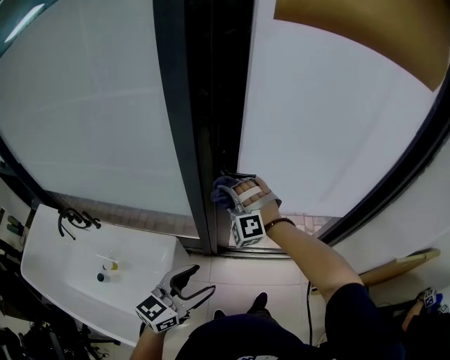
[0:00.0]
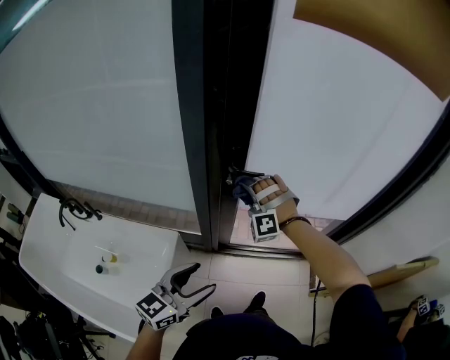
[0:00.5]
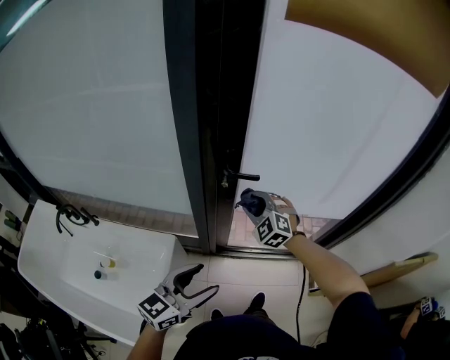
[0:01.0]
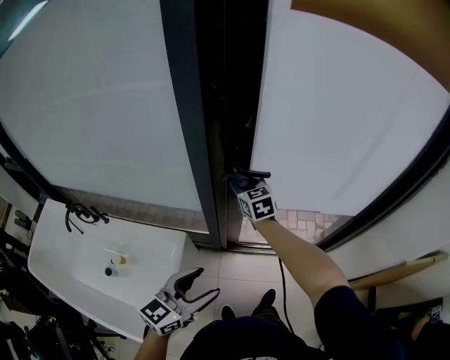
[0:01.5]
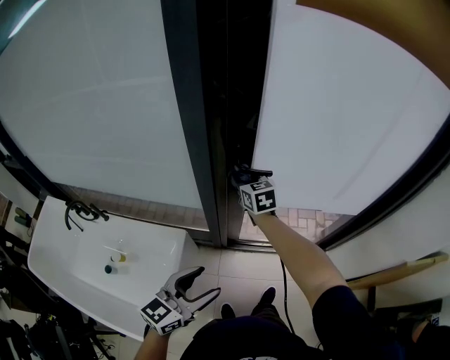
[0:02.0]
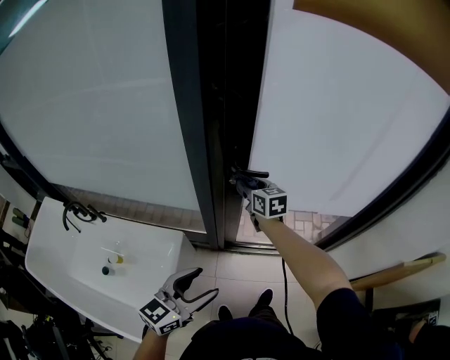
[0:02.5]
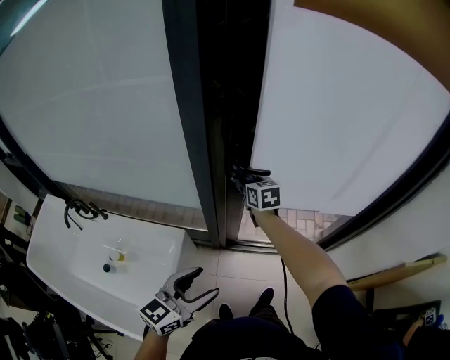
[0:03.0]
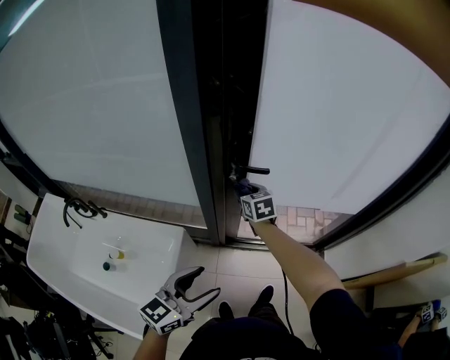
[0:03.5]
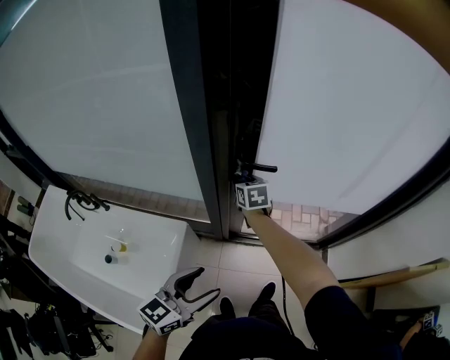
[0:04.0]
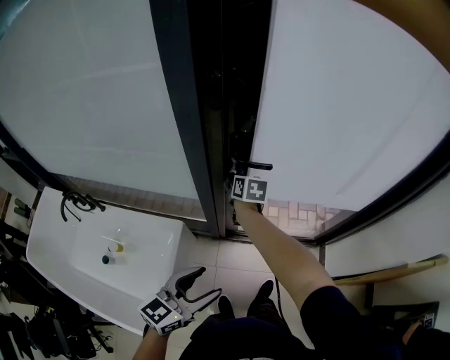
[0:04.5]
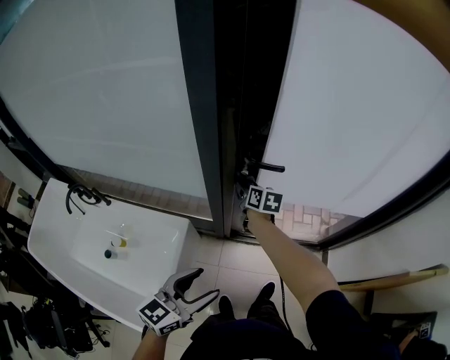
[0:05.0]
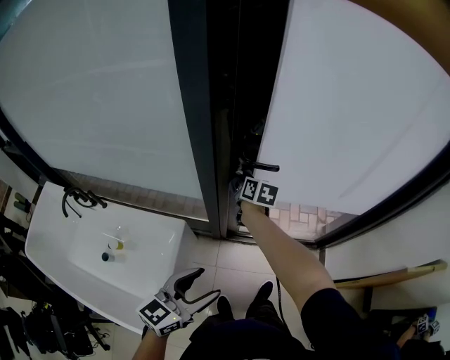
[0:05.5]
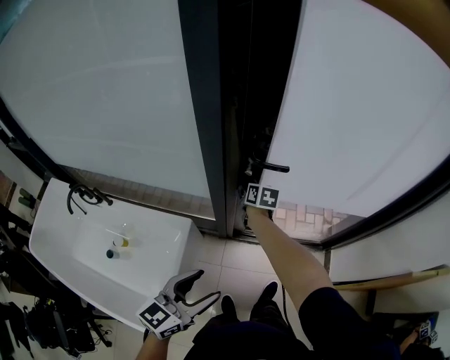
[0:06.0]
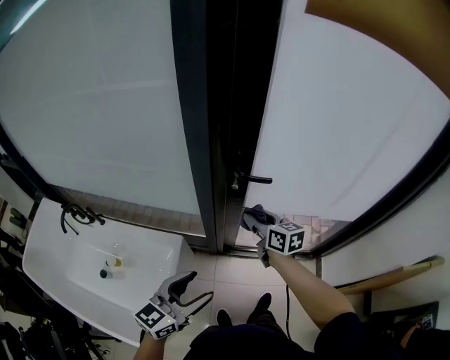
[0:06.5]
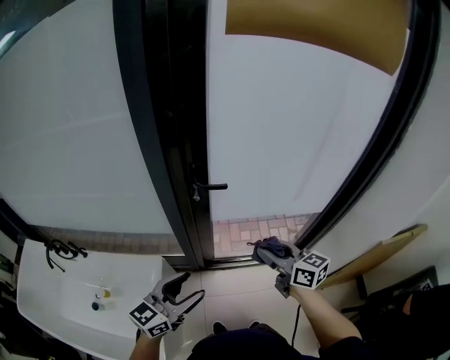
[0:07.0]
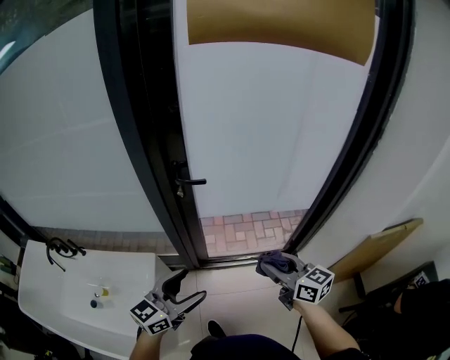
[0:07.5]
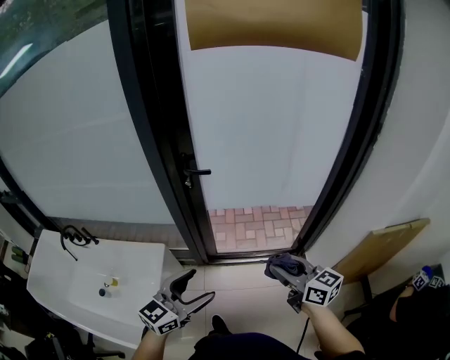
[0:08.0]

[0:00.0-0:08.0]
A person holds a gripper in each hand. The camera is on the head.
0:00.0 to 0:02.0: The right gripper goes some 10 cm forward, and rolls clockwise, seen from behind, by about 90 degrees.
0:02.0 to 0:04.0: The right gripper travels downward by some 5 cm.
0:04.0 to 0:06.0: The right gripper goes approximately 5 cm downward, and changes its angle by some 20 degrees.
0:06.0 to 0:08.0: The right gripper goes about 60 cm backward, to the right and upward, and swivels roughly 30 degrees. Meanwhile the left gripper shifts some 20 cm to the right, backward and upward.

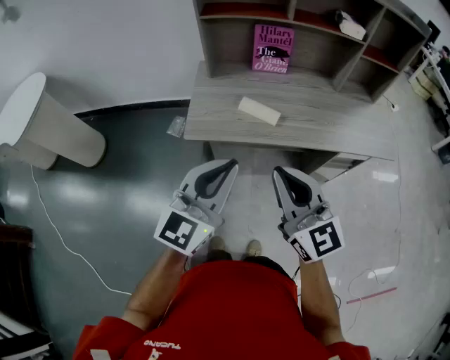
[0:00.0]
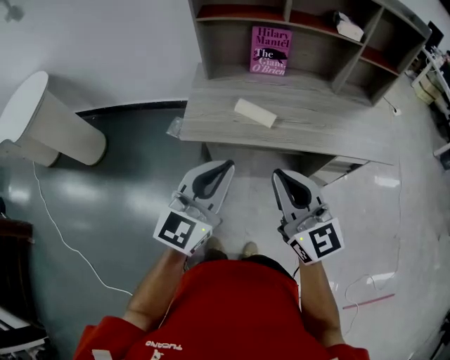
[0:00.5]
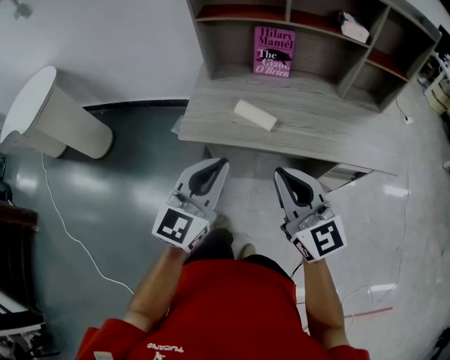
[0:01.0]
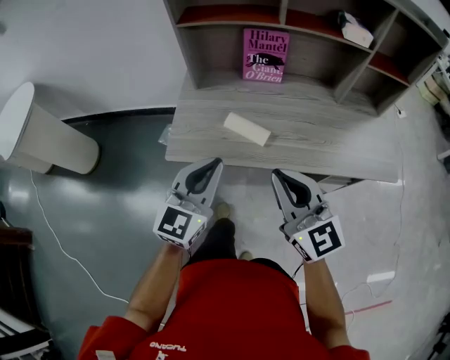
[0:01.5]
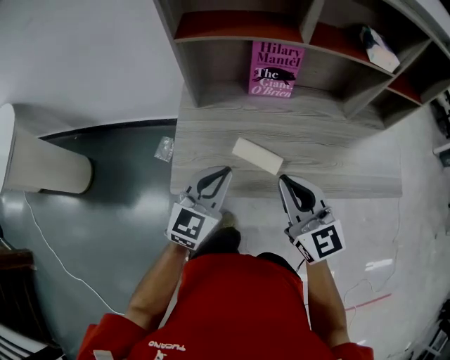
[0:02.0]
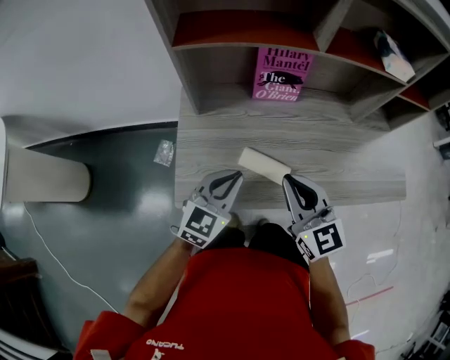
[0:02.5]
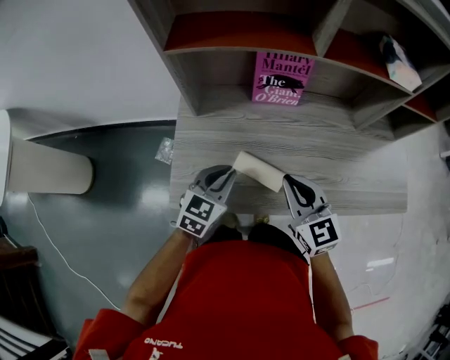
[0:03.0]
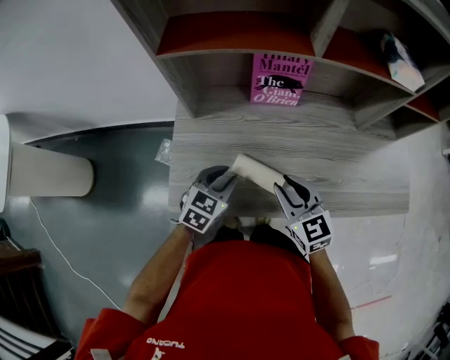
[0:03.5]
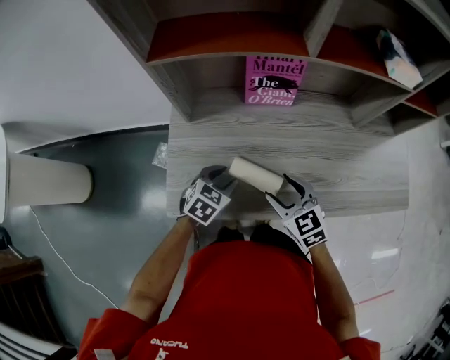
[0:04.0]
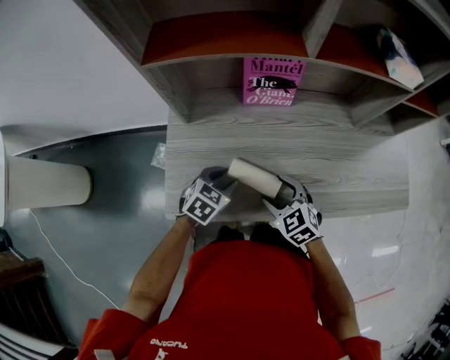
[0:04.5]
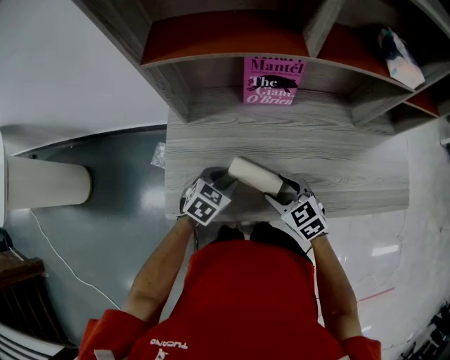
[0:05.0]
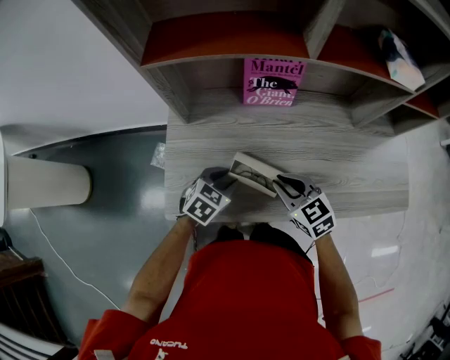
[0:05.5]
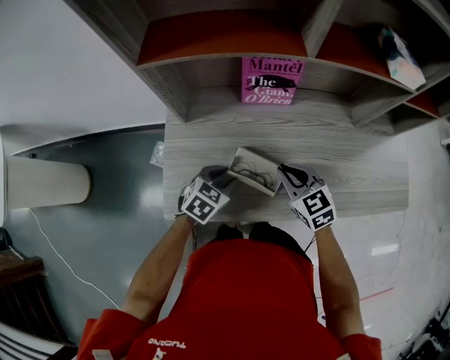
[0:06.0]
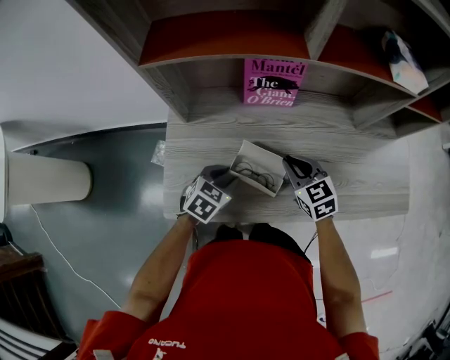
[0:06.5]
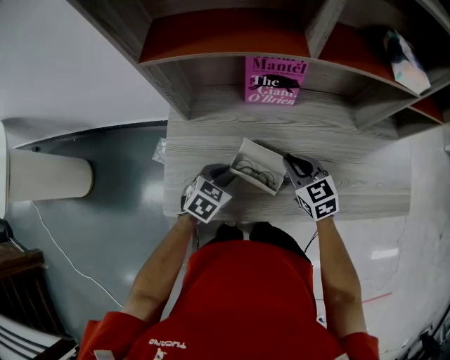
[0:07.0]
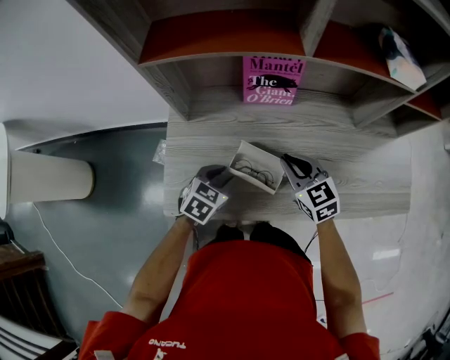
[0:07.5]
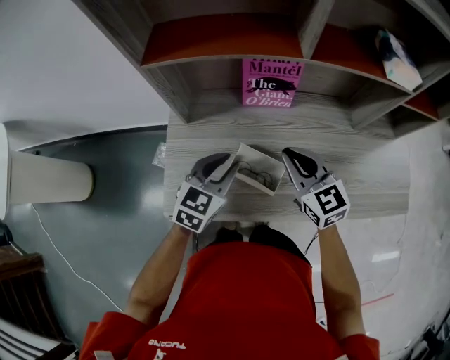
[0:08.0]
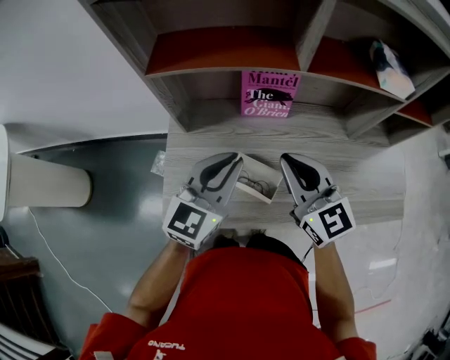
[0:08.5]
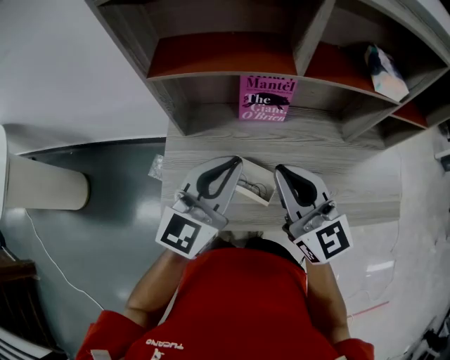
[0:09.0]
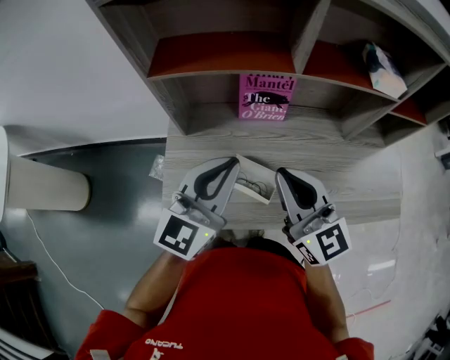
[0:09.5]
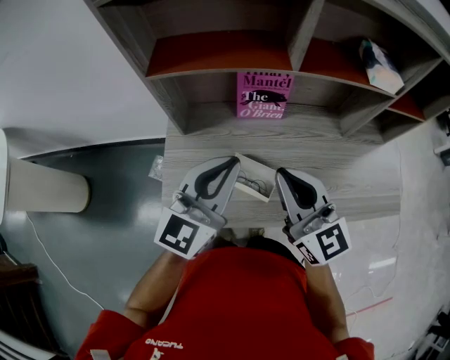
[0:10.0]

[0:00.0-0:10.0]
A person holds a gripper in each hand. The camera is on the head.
0:00.0 to 0:02.0: The right gripper is displaced forward by some 20 cm. The left gripper goes roughly 30 cm forward and downward.
0:02.0 to 0:04.0: The grippers both shift downward and forward by about 20 cm. The left gripper angles its fingers downward, by roughly 40 degrees, and opens up. The right gripper rotates approximately 30 degrees, and opens its fingers.
0:04.0 to 0:06.0: The right gripper travels forward by approximately 5 cm, and closes its fingers.
0:06.0 to 0:08.0: The two grippers go roughly 10 cm upward. The left gripper turns by roughly 20 degrees.
0:08.0 to 0:10.0: The right gripper is displaced upward and backward by some 15 cm, while the left gripper travels upward by about 15 cm, and rotates about 30 degrees.

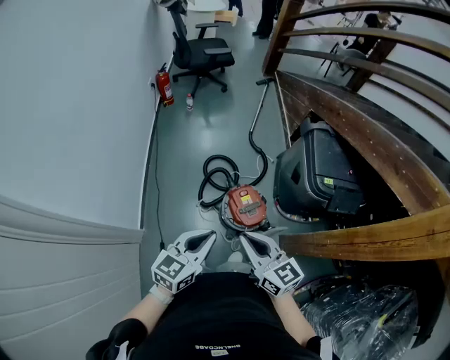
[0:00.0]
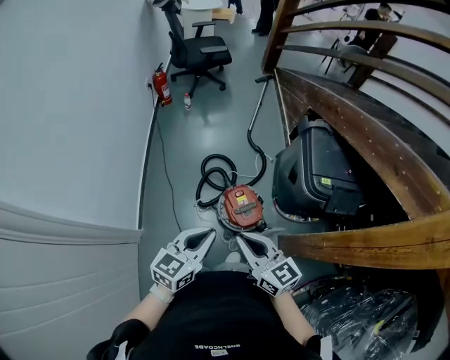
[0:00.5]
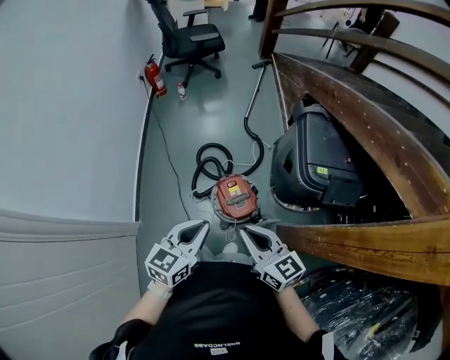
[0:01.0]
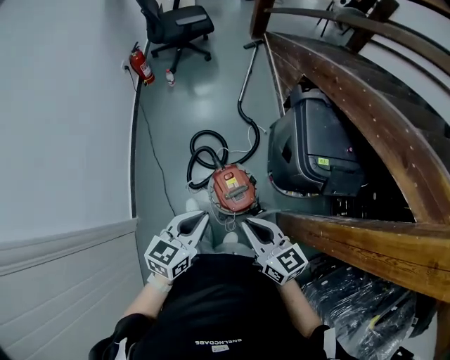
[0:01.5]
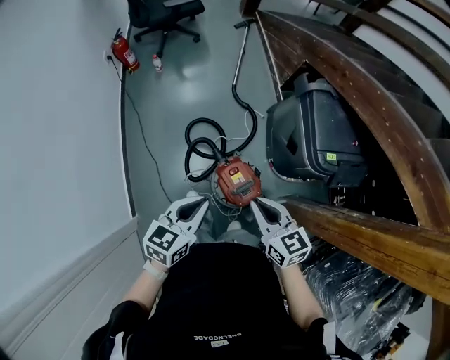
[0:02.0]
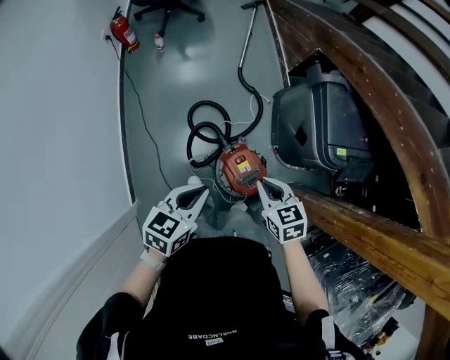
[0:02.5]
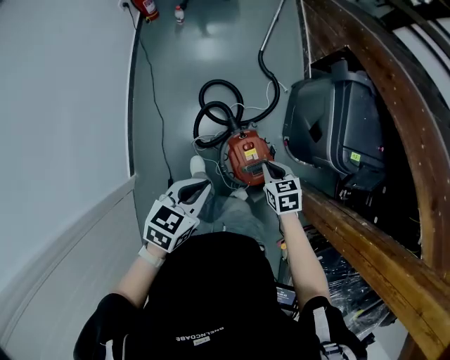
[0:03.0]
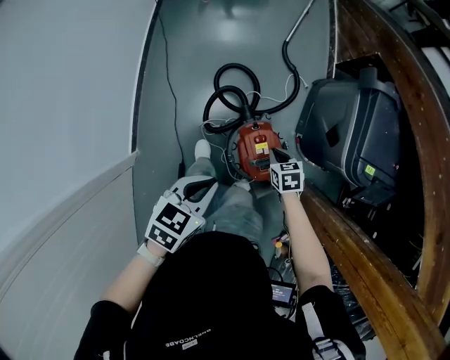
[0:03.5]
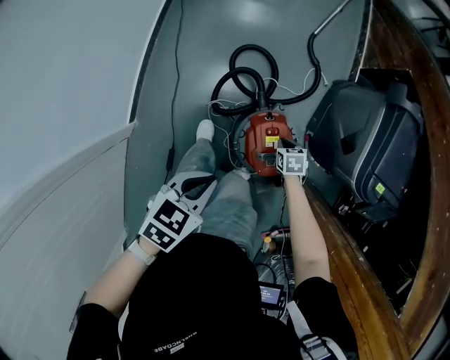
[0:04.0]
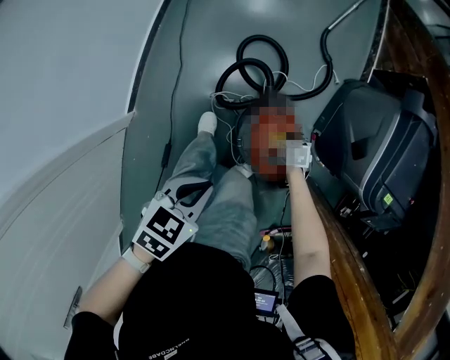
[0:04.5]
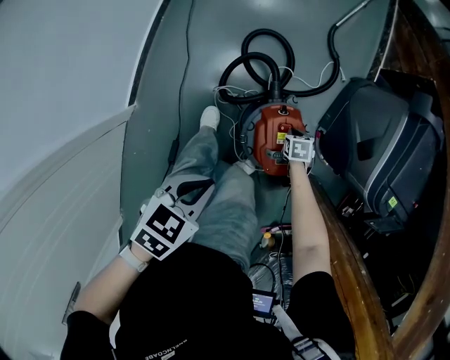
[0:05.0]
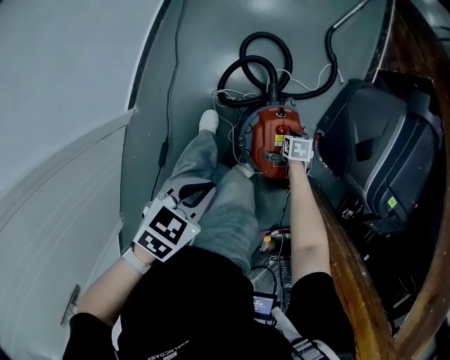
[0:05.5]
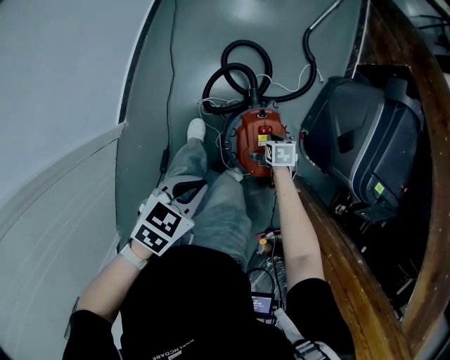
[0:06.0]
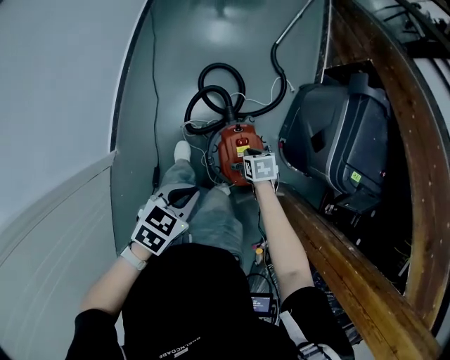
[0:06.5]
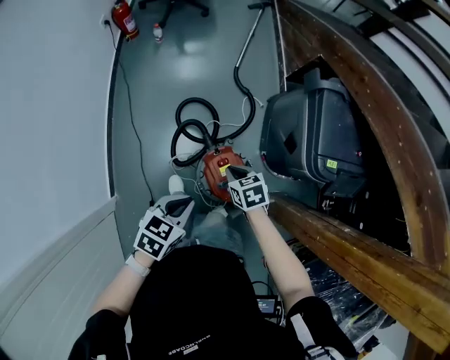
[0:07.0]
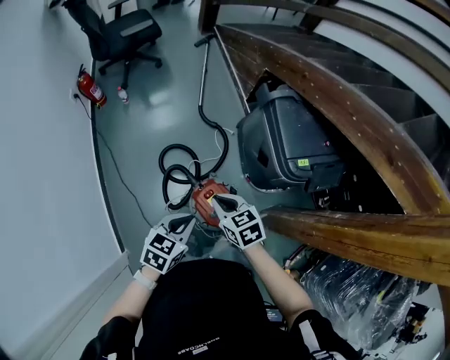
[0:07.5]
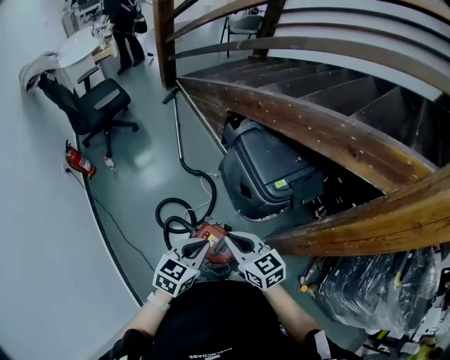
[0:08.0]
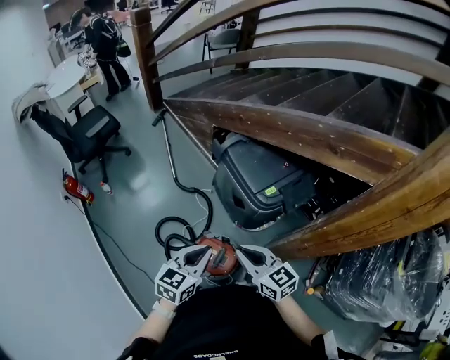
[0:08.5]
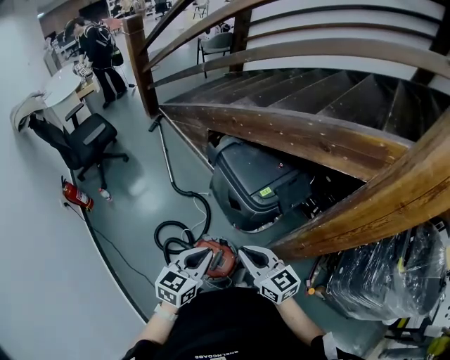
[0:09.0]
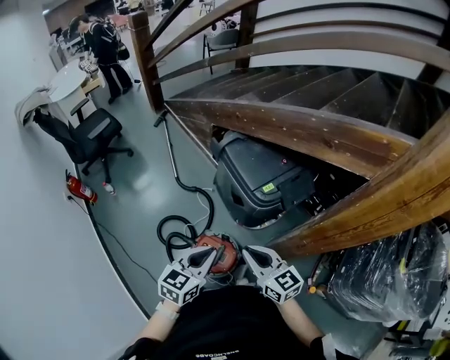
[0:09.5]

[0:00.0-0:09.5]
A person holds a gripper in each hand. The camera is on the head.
0:00.0 to 0:02.0: The left gripper heads forward, covering approximately 25 cm. Meanwhile the right gripper shifts roughly 25 cm forward and downward, and turns by some 20 degrees.
0:02.0 to 0:04.0: The right gripper moves downward, roughly 50 cm, and tilts its fingers roughly 50 degrees downward. The left gripper shifts some 20 cm downward, and turns by about 30 degrees.
0:04.0 to 0:05.5: The right gripper is displaced downward by about 10 cm. The left gripper shifts about 5 cm downward.
0:05.5 to 0:07.5: The right gripper moves upward, approximately 50 cm, and angles its fingers upward, by about 40 degrees; the left gripper moves upward, roughly 20 cm, and turns by roughly 30 degrees.
0:07.5 to 0:09.5: The grippers both shift to the right and upward by approximately 25 cm. The left gripper changes its angle by some 20 degrees. The right gripper tilts its fingers about 30 degrees upward.
